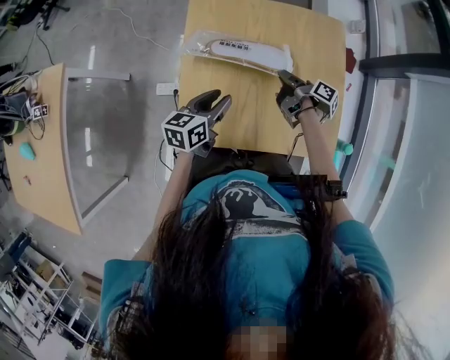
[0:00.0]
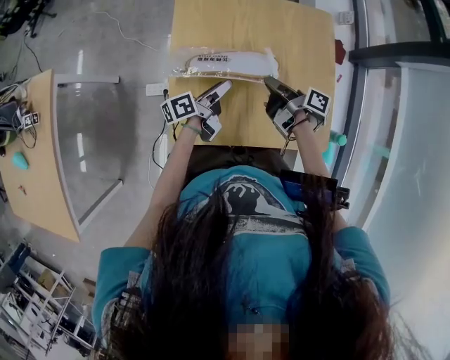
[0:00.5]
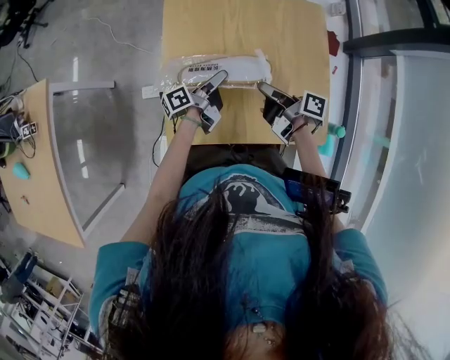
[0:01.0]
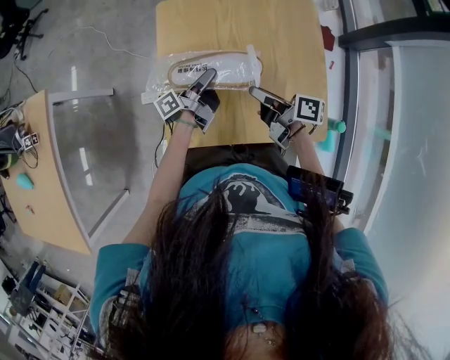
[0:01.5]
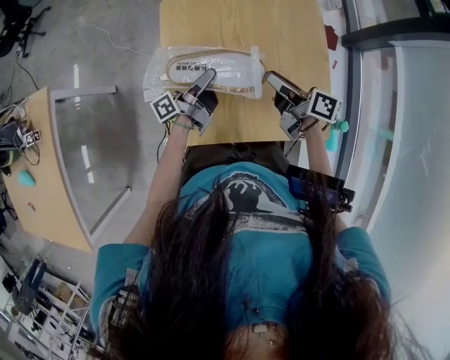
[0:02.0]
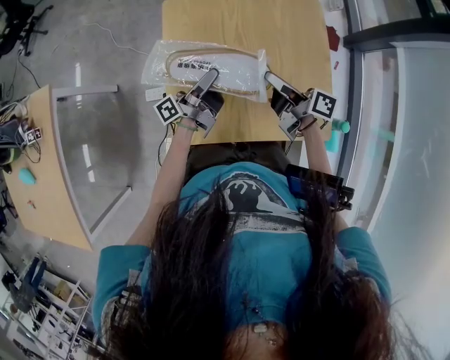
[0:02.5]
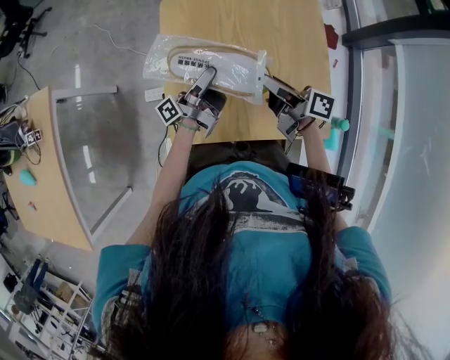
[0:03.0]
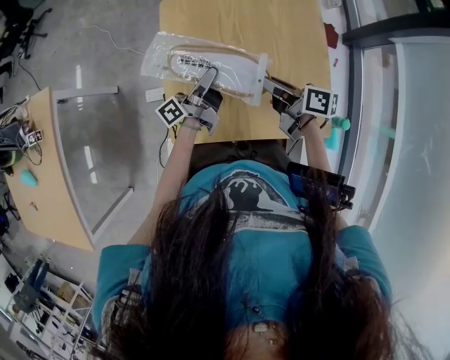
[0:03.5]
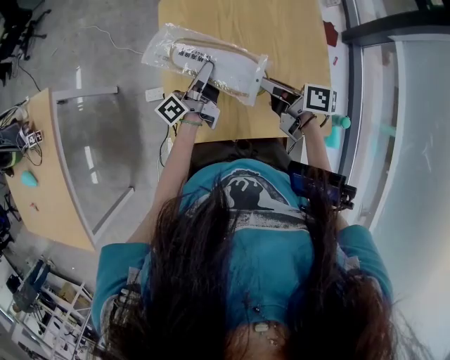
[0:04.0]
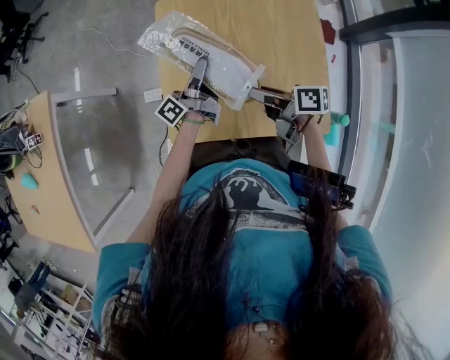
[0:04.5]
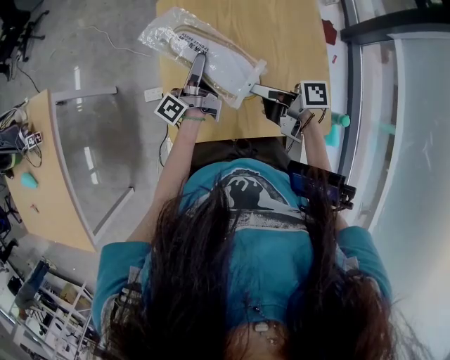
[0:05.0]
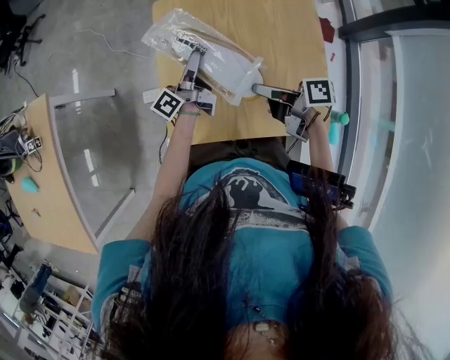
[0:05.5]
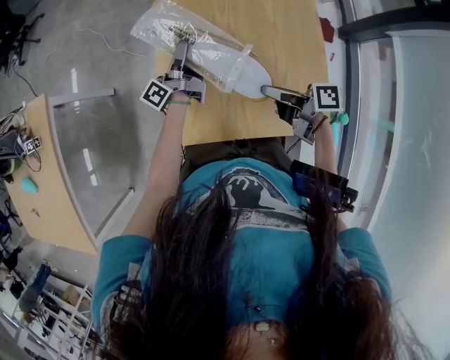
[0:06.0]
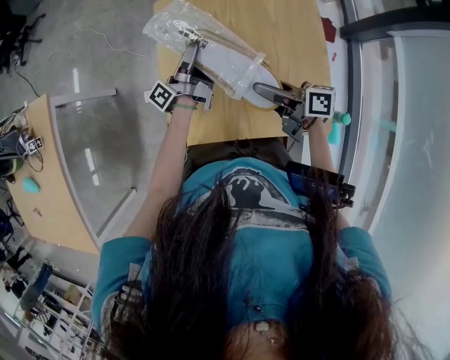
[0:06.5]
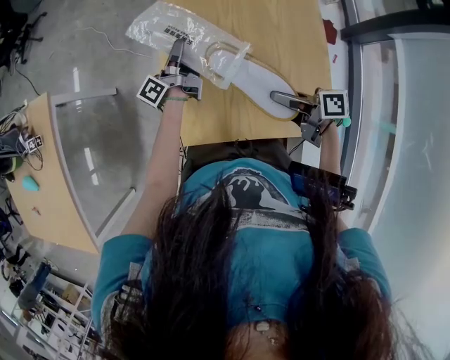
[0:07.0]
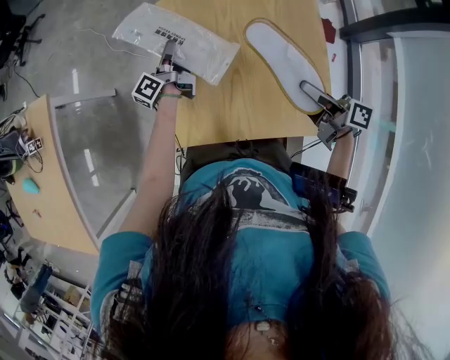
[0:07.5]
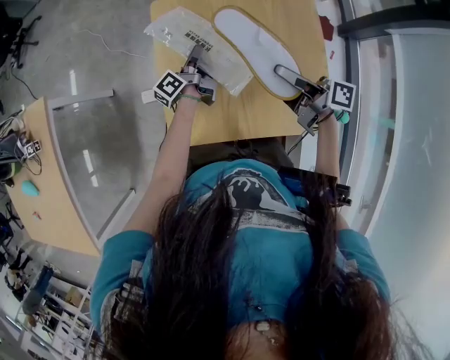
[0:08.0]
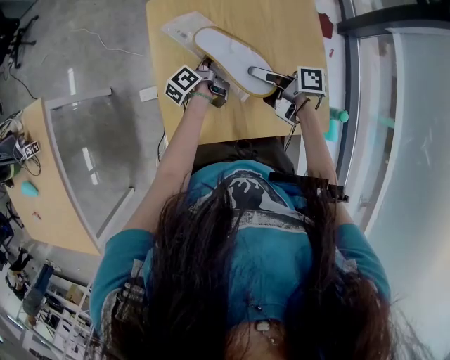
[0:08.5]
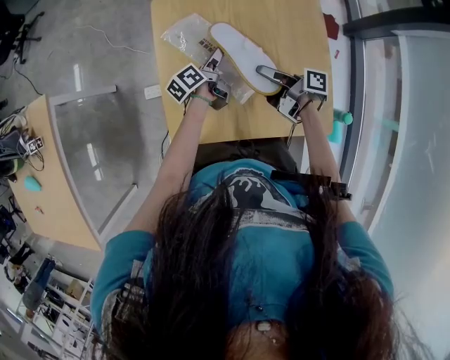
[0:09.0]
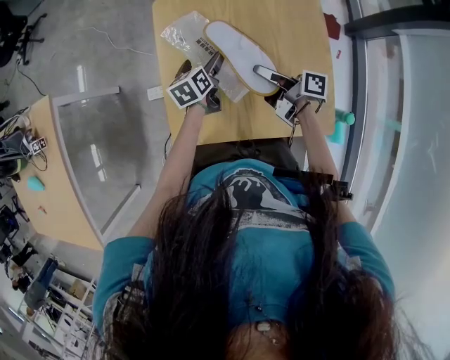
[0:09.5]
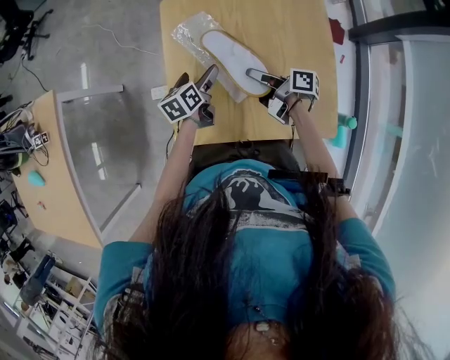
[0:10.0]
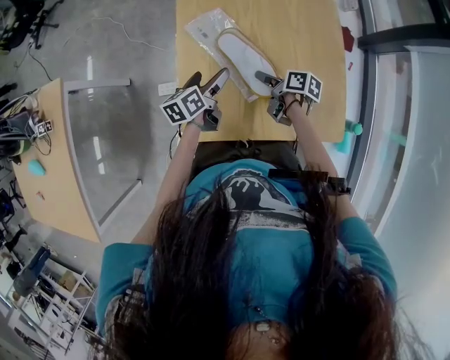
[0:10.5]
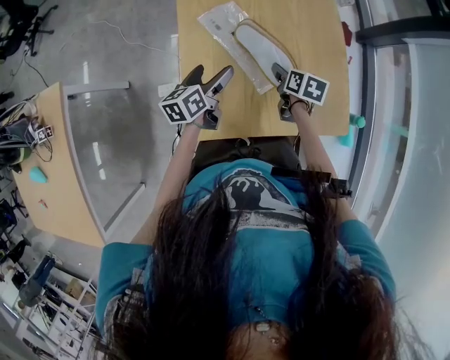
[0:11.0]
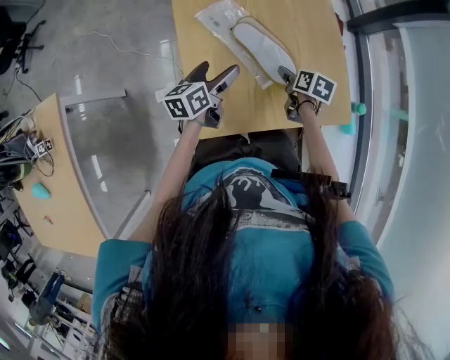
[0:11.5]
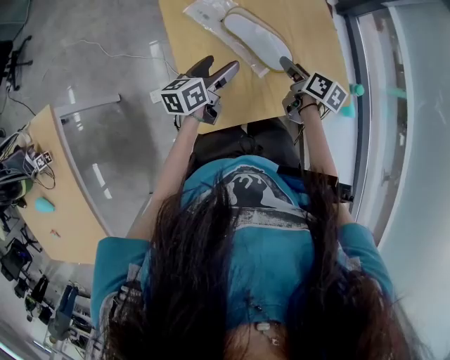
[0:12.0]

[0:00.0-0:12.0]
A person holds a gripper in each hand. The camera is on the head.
0:00.0 to 0:02.0: The right gripper heads upward and backward, covering roughly 15 cm, and rotates some 40 degrees, while the left gripper is displaced forward by about 5 cm, and tips its fingers upward by some 40 degrees.
0:02.0 to 0:04.0: The grippers move only a little.
0:04.0 to 0:06.0: The left gripper goes some 10 cm forward.
0:06.0 to 0:08.0: The left gripper is displaced downward by some 5 cm. Meanwhile the right gripper shifts about 5 cm to the right.
0:08.0 to 0:10.0: The left gripper goes approximately 5 cm backward, turns by roughly 50 degrees, and opens its fingers. Meanwhile the right gripper travels downward and to the left by about 15 cm.
0:10.0 to 0:12.0: The right gripper changes place by approximately 5 cm, turns by approximately 50 degrees, and opens up. The left gripper shifts roughly 5 cm upward, and turns by approximately 30 degrees.

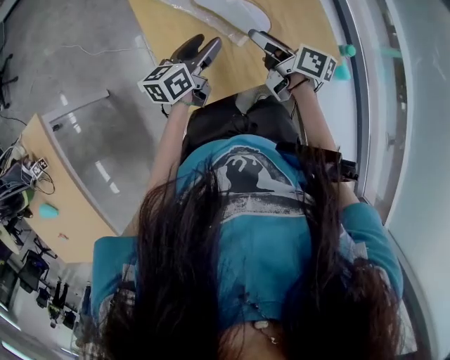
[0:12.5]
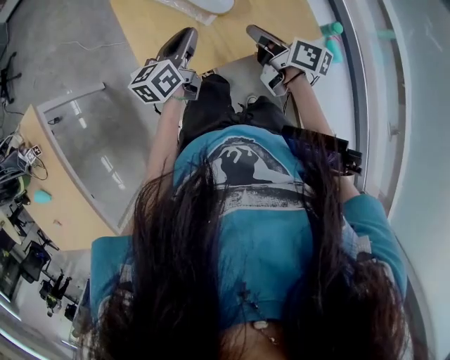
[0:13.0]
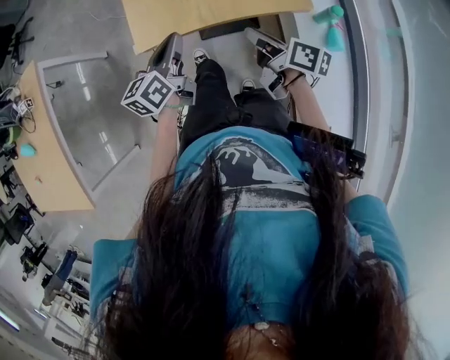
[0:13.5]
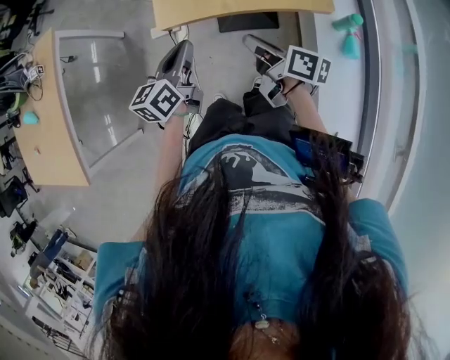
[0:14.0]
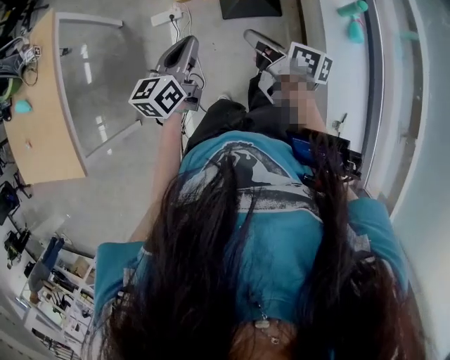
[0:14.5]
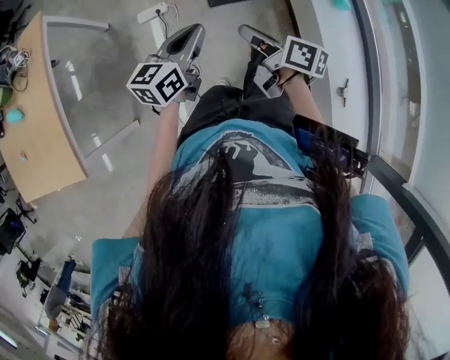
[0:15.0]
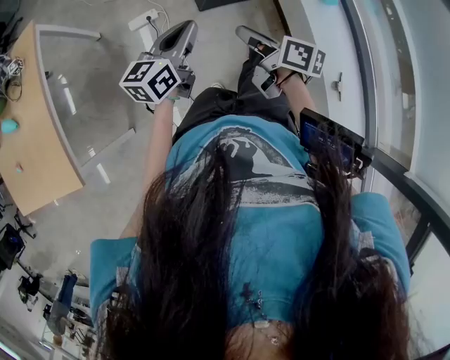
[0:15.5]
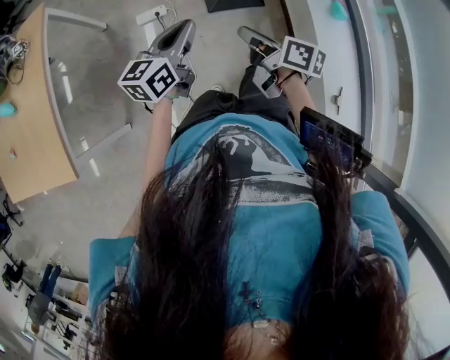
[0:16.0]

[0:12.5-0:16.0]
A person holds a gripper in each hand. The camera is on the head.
0:12.5 to 0:14.5: Both grippers are carried backward, some 40 cm. The right gripper closes its fingers, while the left gripper changes its angle by about 20 degrees, and closes up.
0:14.5 to 0:16.0: Both grippers travel together backward and to the left, some 10 cm.

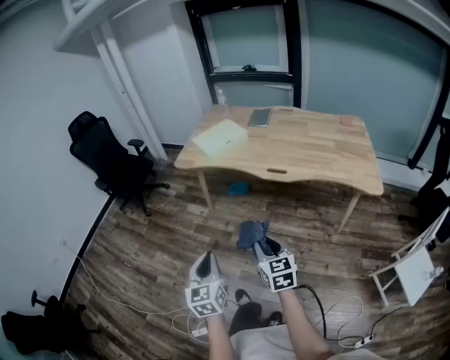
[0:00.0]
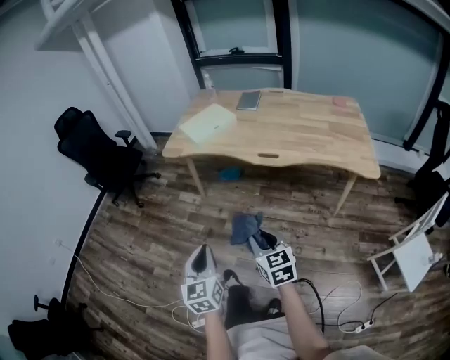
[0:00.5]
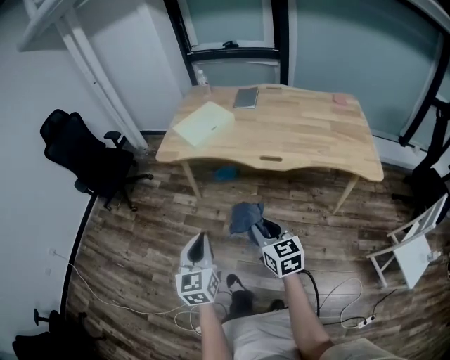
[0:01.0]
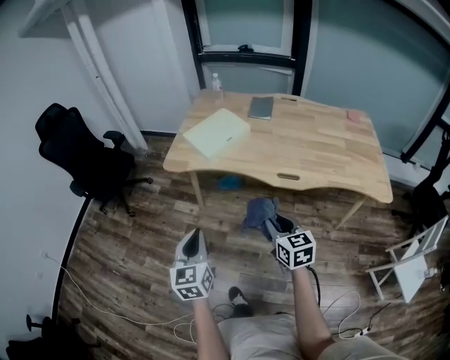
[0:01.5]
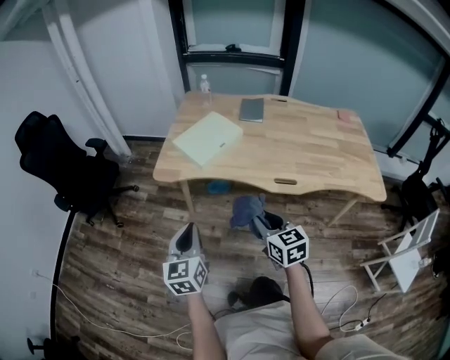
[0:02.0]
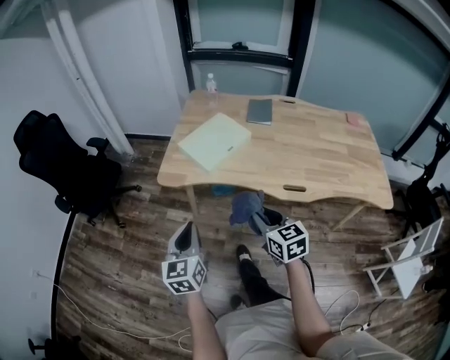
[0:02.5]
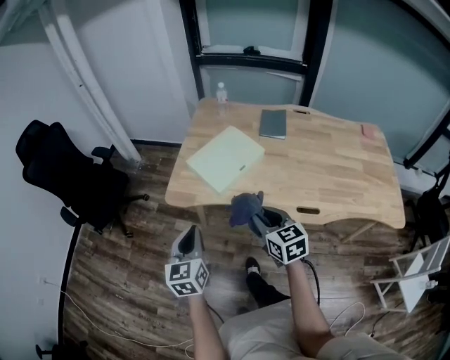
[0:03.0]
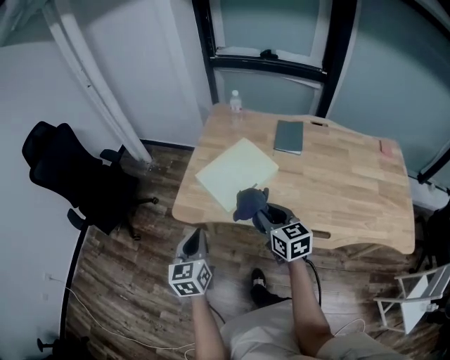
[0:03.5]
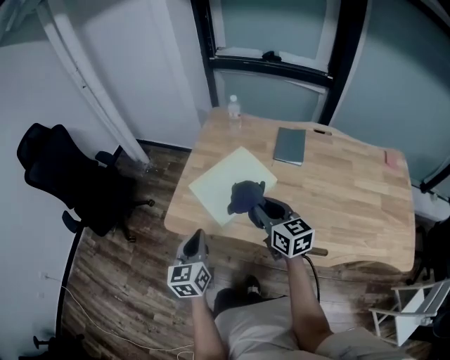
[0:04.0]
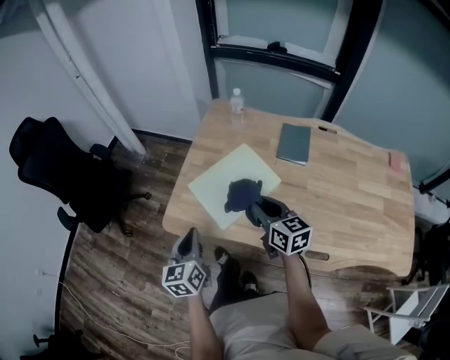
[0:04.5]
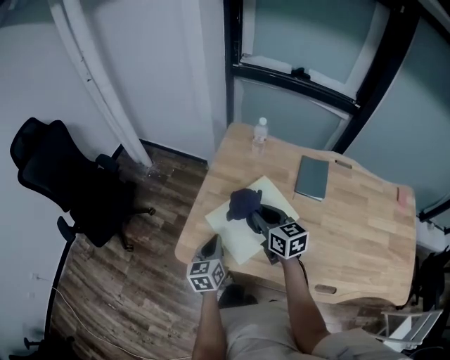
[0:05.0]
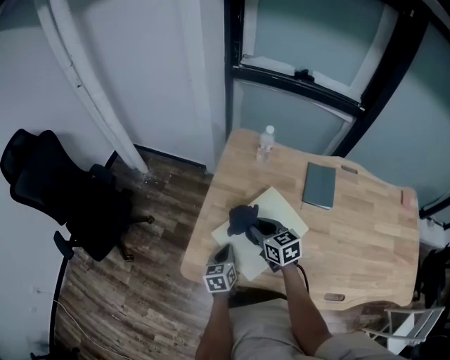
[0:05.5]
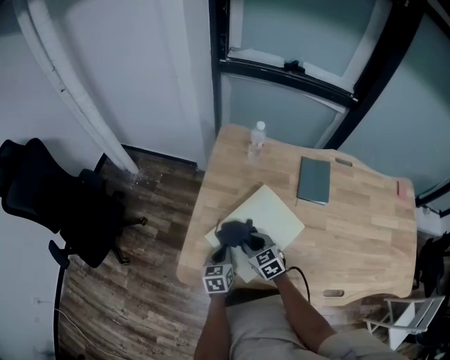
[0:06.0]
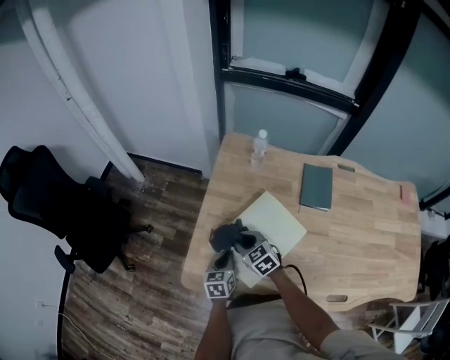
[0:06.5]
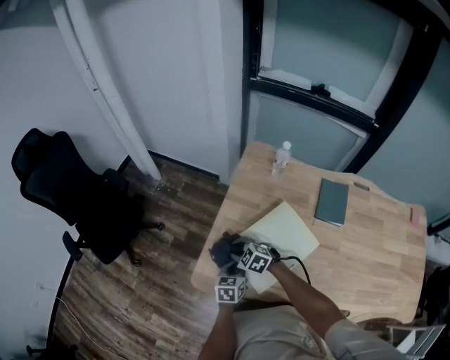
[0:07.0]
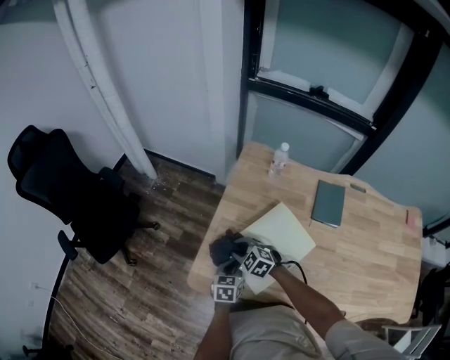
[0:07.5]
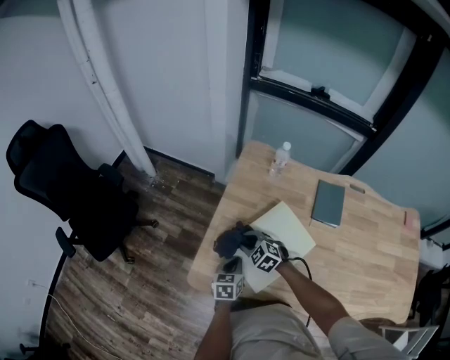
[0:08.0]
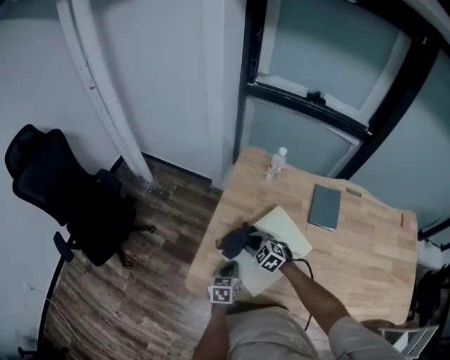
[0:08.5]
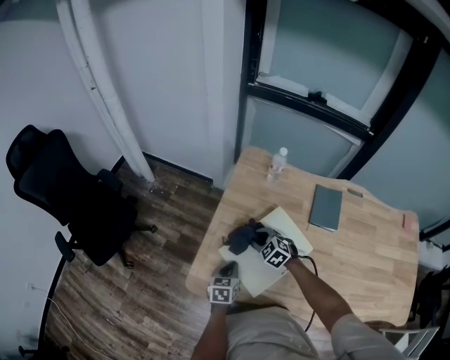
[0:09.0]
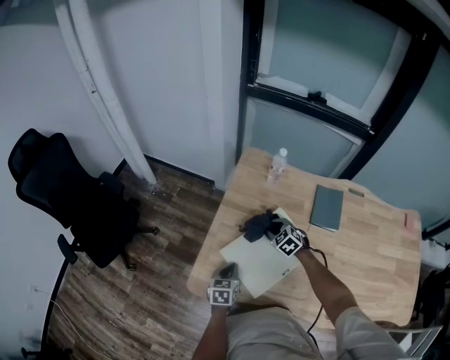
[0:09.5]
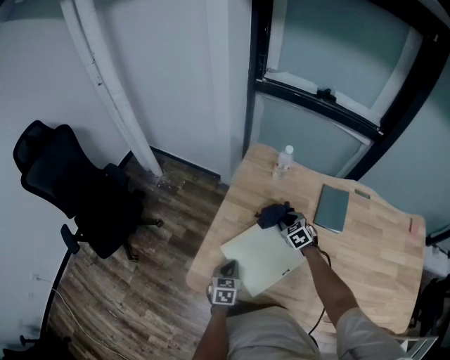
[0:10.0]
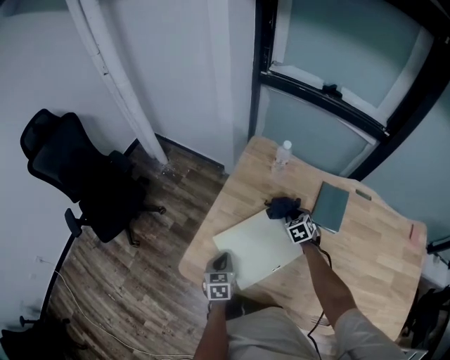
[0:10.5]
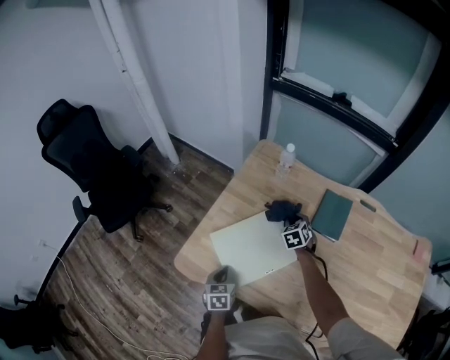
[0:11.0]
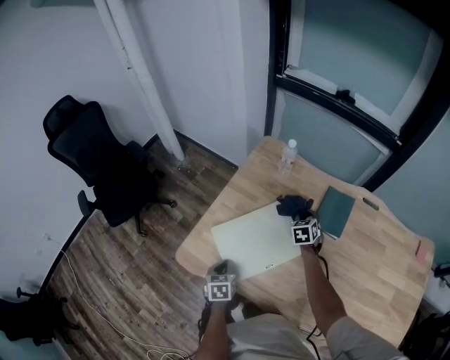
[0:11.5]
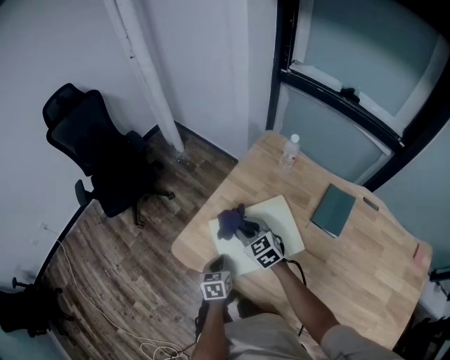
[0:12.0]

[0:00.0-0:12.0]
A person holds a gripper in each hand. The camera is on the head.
0:00.0 to 0:02.0: The two grippers go some 35 cm forward.
0:02.0 to 0:04.0: The two grippers go approximately 35 cm forward.
0:04.0 to 0:06.0: The right gripper heads downward, forward and to the left, covering about 30 cm, and changes its angle by roughly 30 degrees, while the left gripper travels forward and downward by approximately 30 cm, and changes its angle by about 20 degrees.
0:06.0 to 0:08.0: The right gripper shifts roughly 5 cm to the left, and rotates about 30 degrees.
0:08.0 to 0:10.0: The right gripper shifts approximately 20 cm to the right and forward, and turns by roughly 30 degrees.
0:10.0 to 0:12.0: The left gripper ends up about 5 cm from where it was, and turns by some 30 degrees. Meanwhile the right gripper changes place by some 20 cm, and swivels about 30 degrees.
